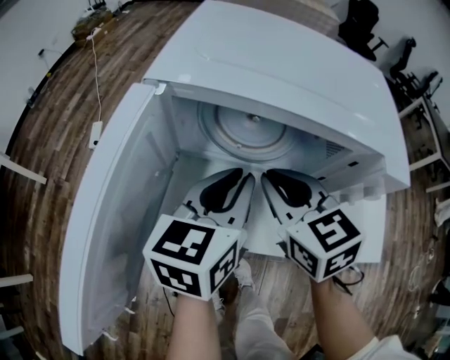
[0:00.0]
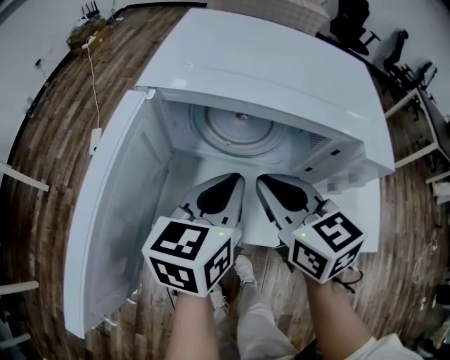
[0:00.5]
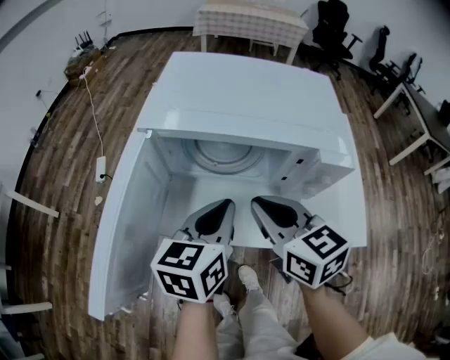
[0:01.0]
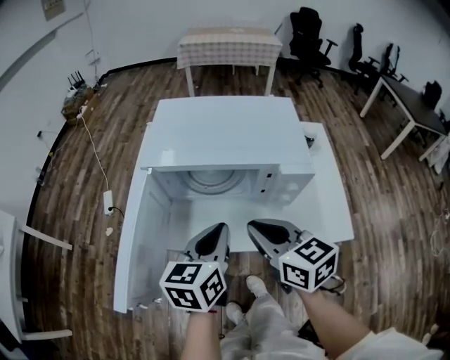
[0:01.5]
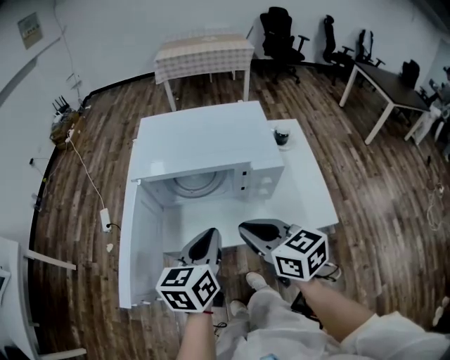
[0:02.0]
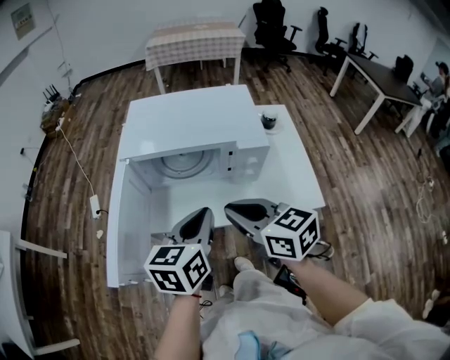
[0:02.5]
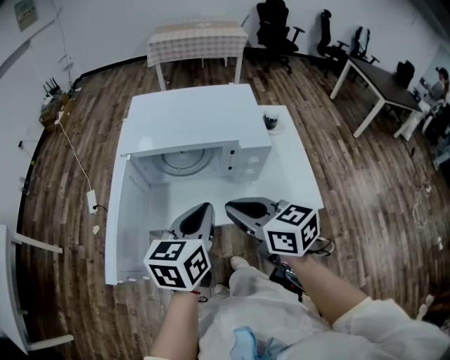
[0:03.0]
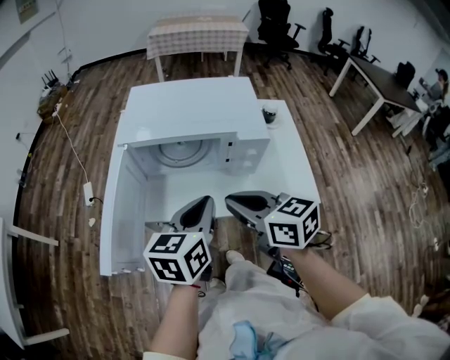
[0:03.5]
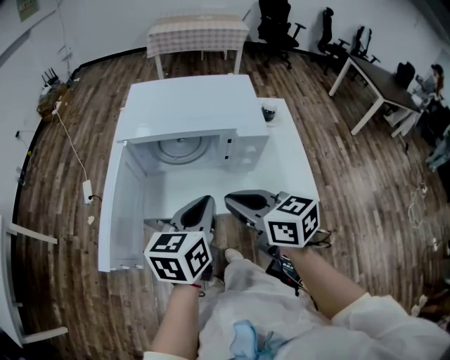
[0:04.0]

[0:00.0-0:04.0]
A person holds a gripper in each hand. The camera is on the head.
0:00.0 to 0:02.0: Both grippers move backward and upward, roughly 20 cm. The right gripper changes its angle by approximately 20 degrees.
0:02.0 to 0:04.0: The grippers move only a little.

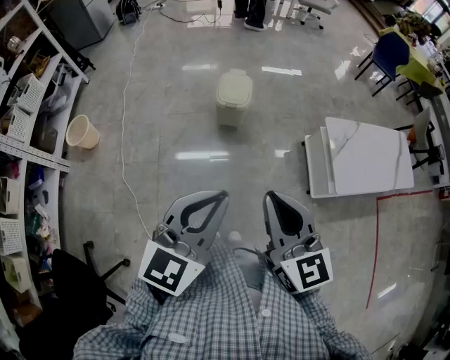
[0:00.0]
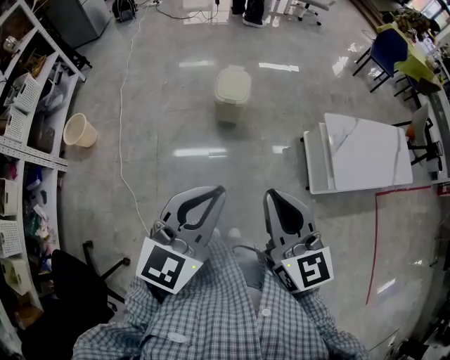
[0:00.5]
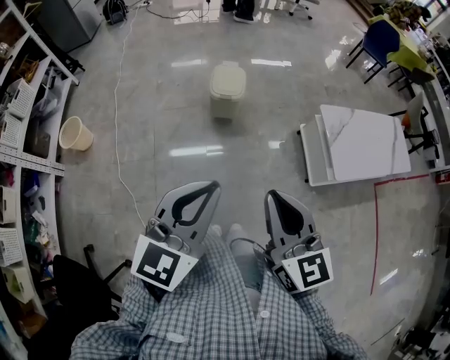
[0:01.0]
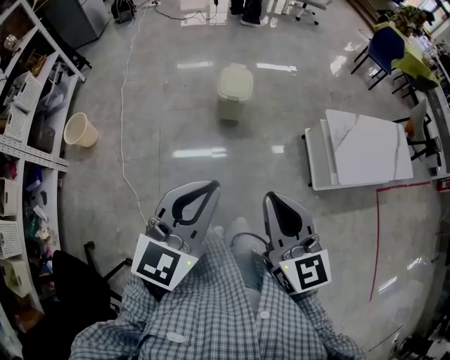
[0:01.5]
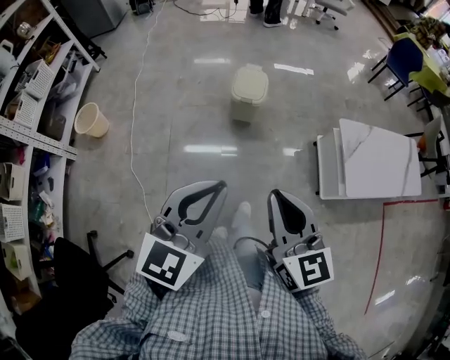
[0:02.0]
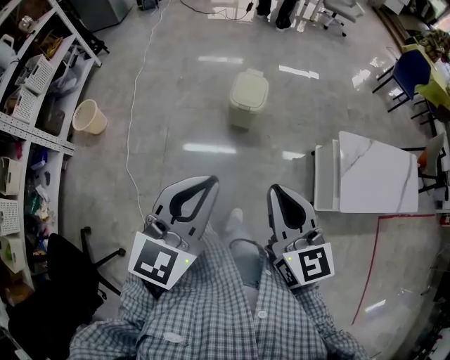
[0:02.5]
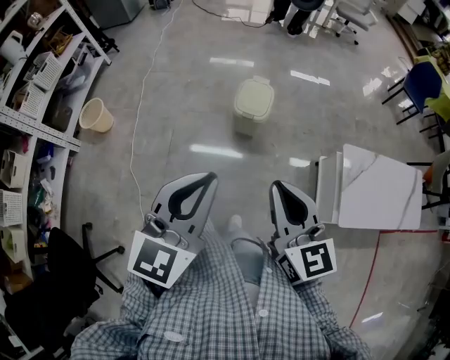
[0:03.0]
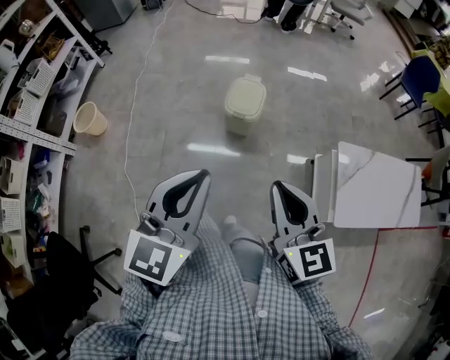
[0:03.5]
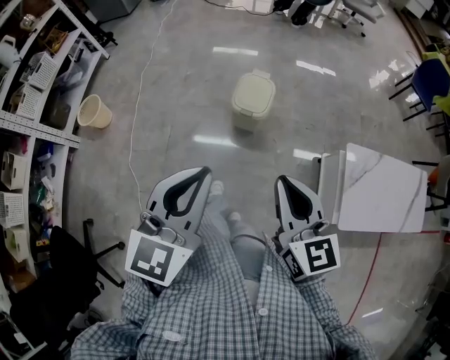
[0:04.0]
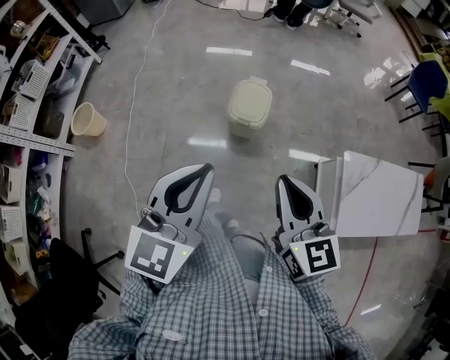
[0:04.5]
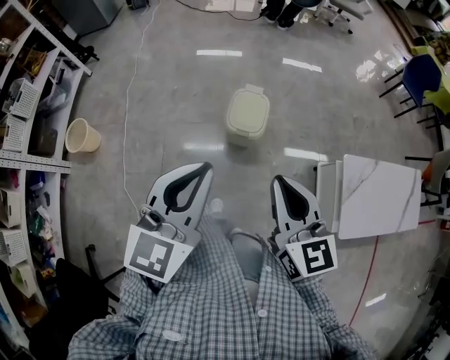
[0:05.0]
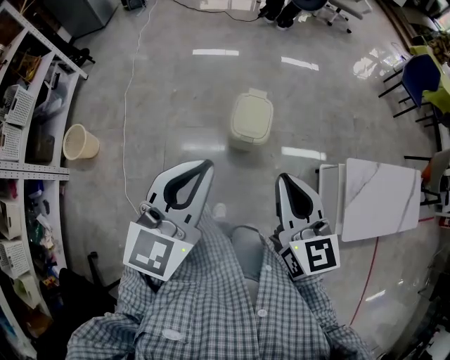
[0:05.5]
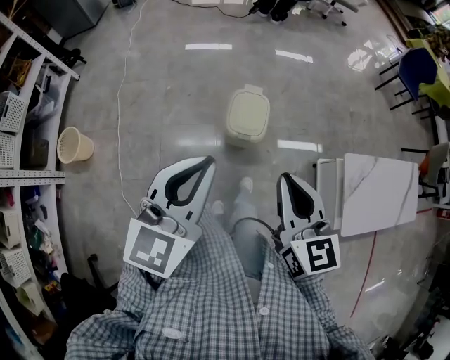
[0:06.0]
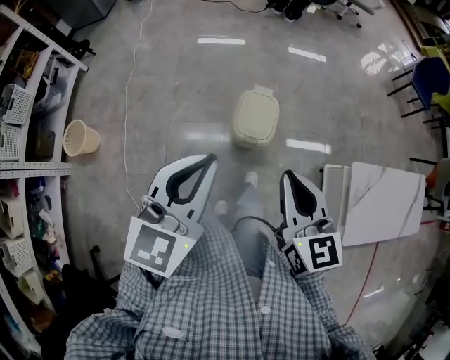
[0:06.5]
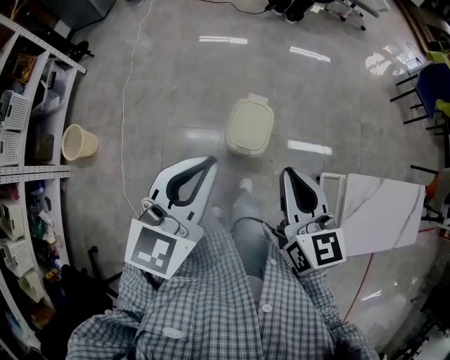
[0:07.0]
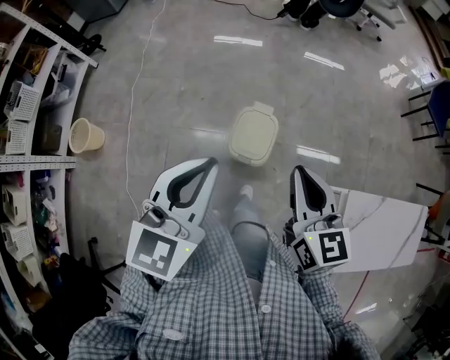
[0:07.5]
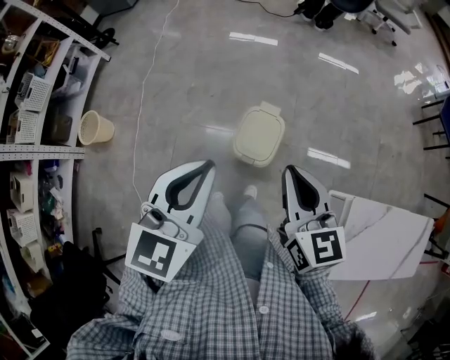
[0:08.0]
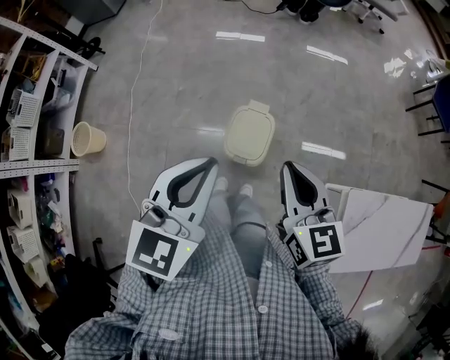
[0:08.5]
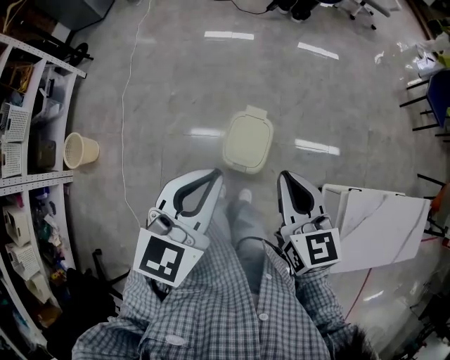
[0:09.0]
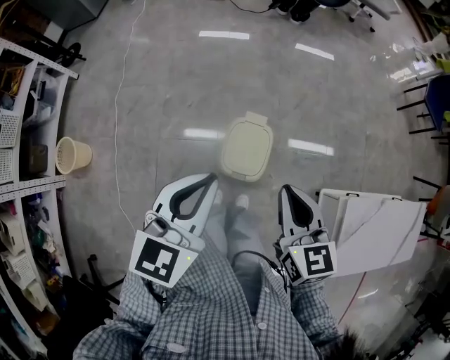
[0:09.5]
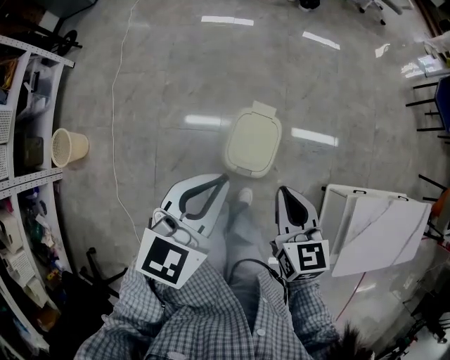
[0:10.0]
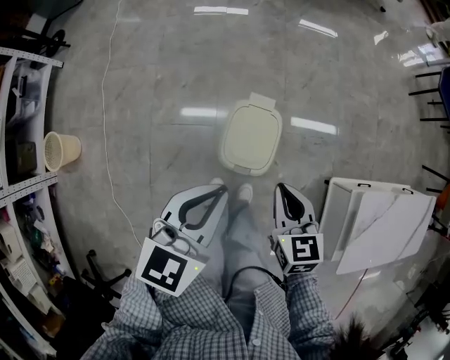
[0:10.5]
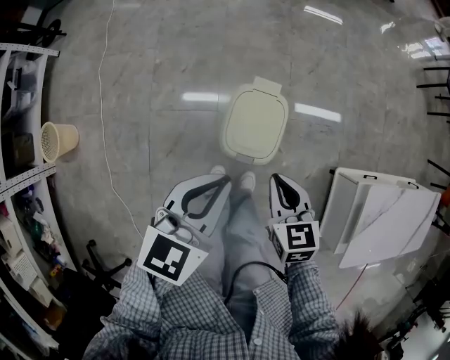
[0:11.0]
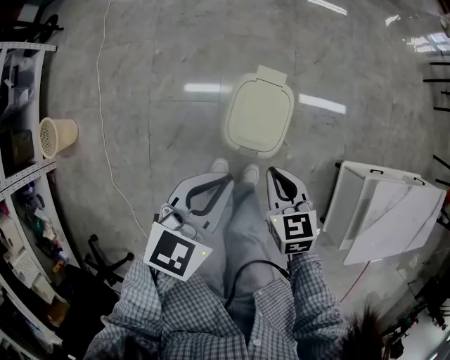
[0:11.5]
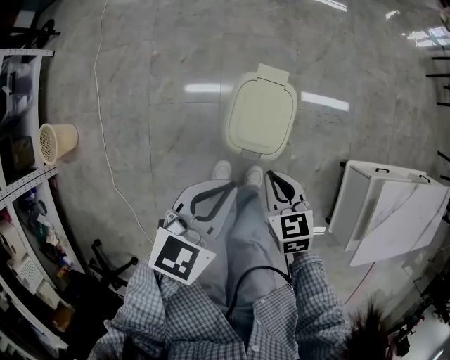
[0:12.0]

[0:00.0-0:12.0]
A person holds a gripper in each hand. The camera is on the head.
0:00.0 to 0:02.0: The grippers make only small movements.
0:02.0 to 0:04.0: The left gripper heads forward, covering approximately 15 cm. The right gripper shifts roughly 20 cm forward and to the right.
0:04.0 to 0:06.0: Both grippers move forward and to the left, approximately 20 cm.
0:06.0 to 0:08.0: The grippers both shift forward and to the right by roughly 20 cm.
0:08.0 to 0:10.0: The left gripper is displaced downward and forward by about 15 cm, while the right gripper heads downward, covering approximately 15 cm.
0:10.0 to 0:12.0: Both grippers travel together downward, about 20 cm.

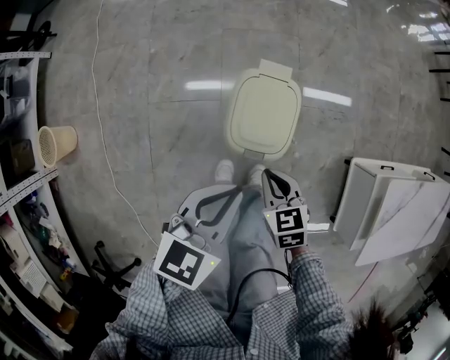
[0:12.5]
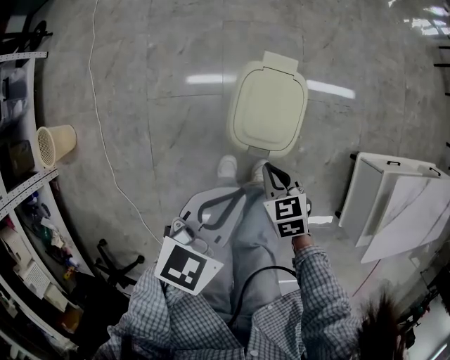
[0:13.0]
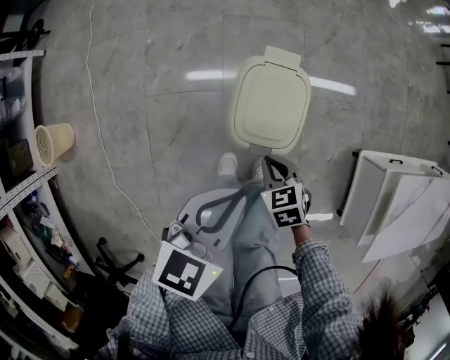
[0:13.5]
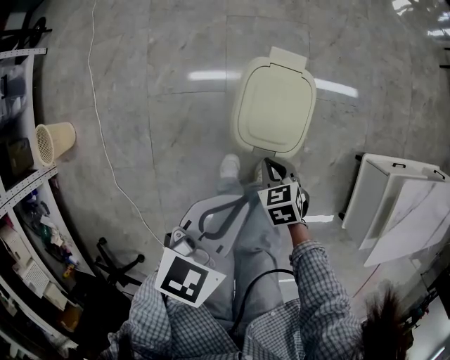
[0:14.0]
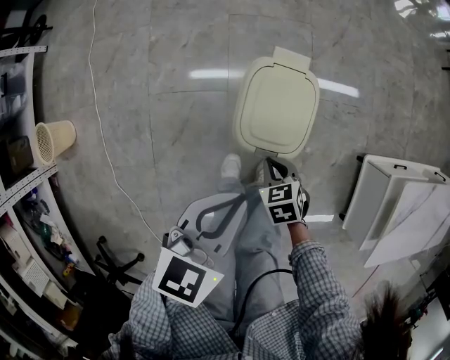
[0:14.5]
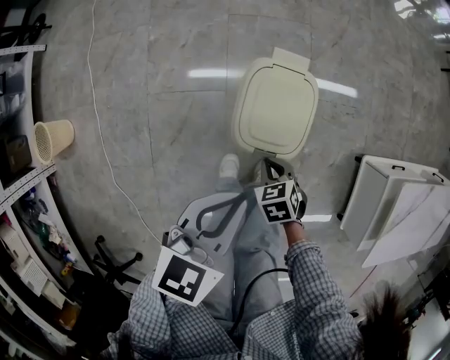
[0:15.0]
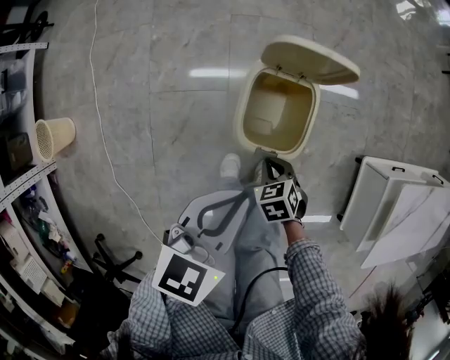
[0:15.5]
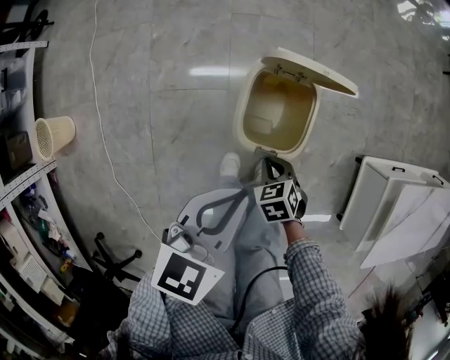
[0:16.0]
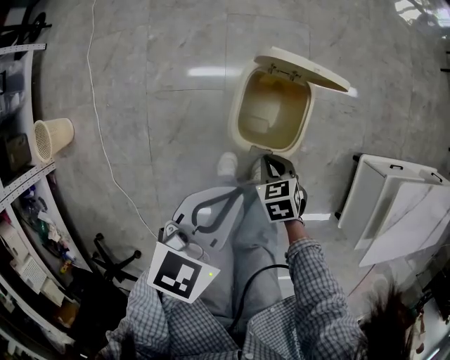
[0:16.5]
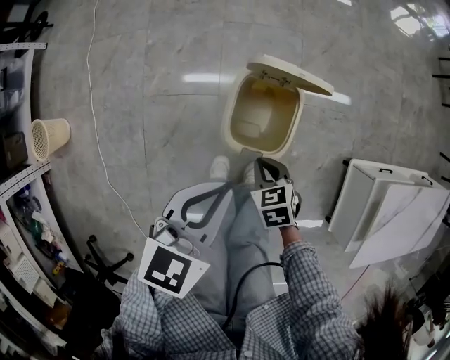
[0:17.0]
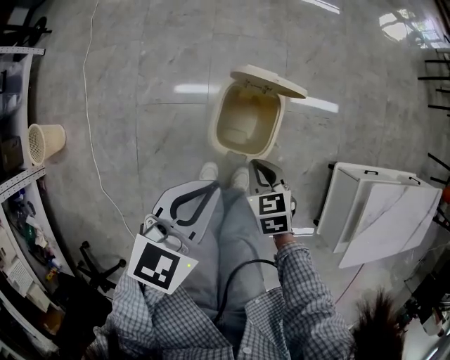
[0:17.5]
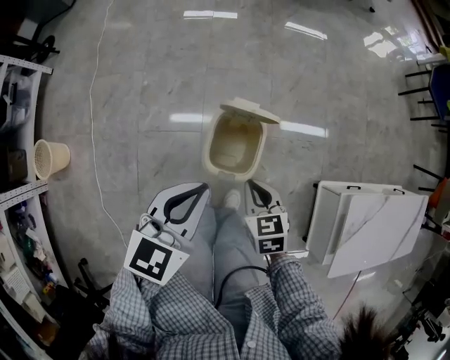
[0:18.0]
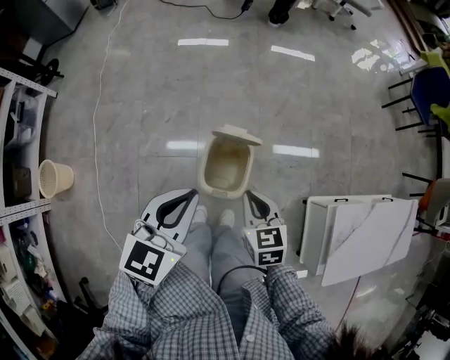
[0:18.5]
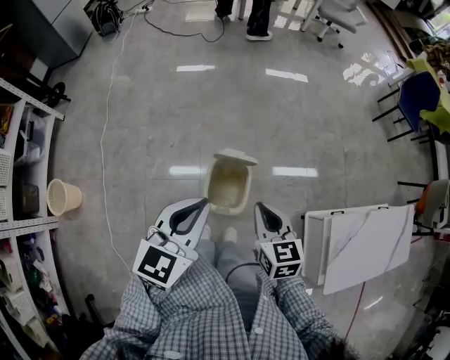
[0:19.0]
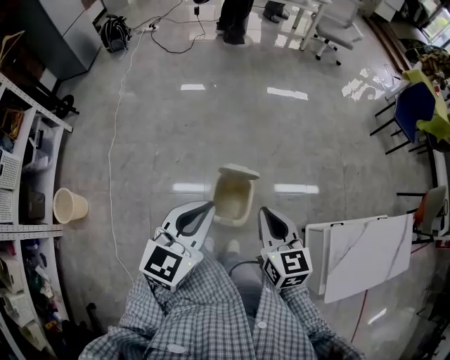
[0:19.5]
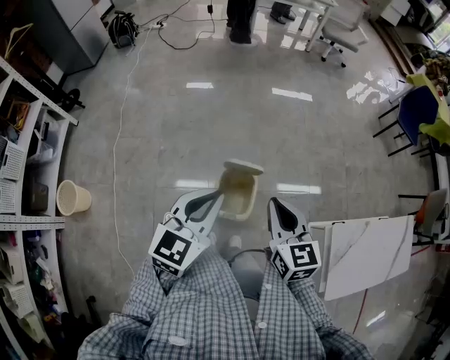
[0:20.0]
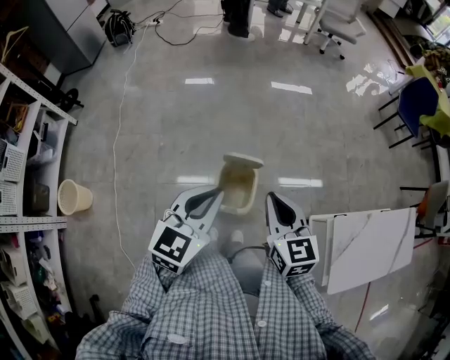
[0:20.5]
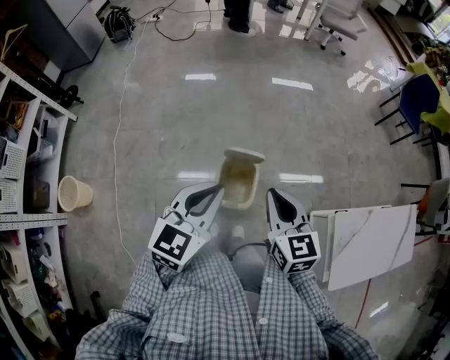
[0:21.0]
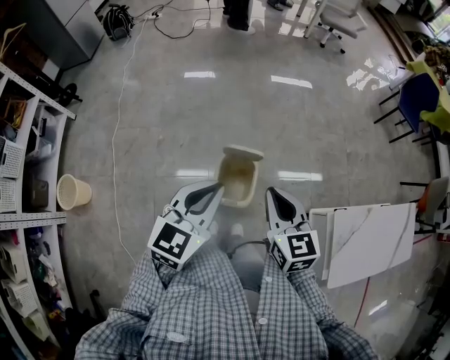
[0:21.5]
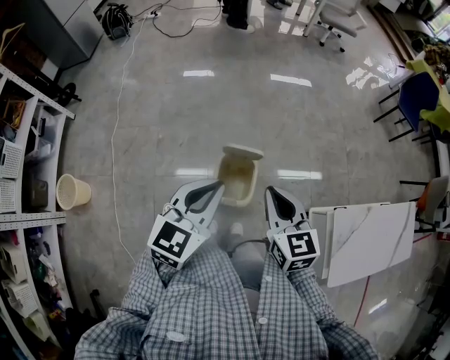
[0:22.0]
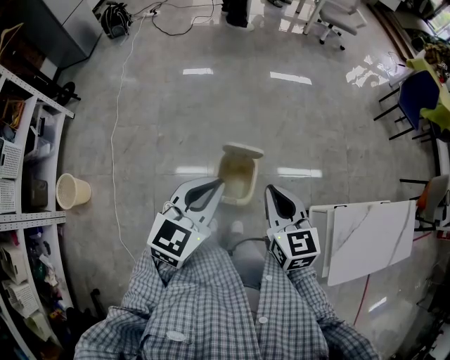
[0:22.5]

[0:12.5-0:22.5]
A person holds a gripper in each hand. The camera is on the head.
0:12.5 to 0:14.5: The right gripper shifts about 10 cm downward.
0:14.5 to 0:16.5: There are only small adjustments of the grippers.
0:16.5 to 0:18.5: The right gripper is displaced upward by roughly 30 cm, and rotates roughly 30 degrees, while the left gripper goes roughly 20 cm upward.
0:18.5 to 0:20.5: The left gripper moves upward, some 10 cm, while the right gripper moves upward, about 20 cm.
0:20.5 to 0:22.5: The two grippers keep their place.

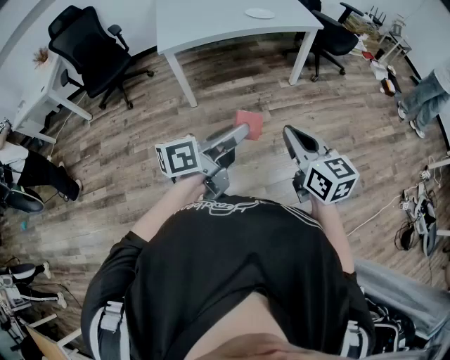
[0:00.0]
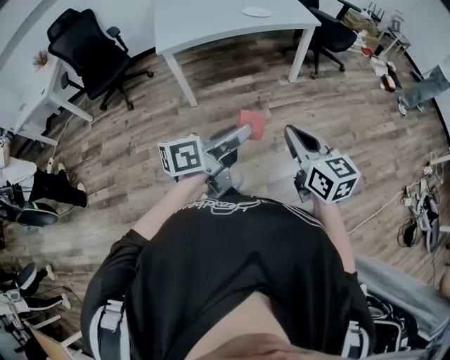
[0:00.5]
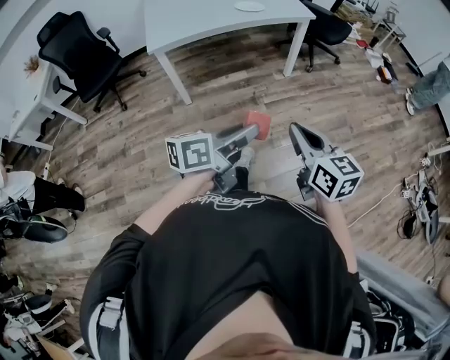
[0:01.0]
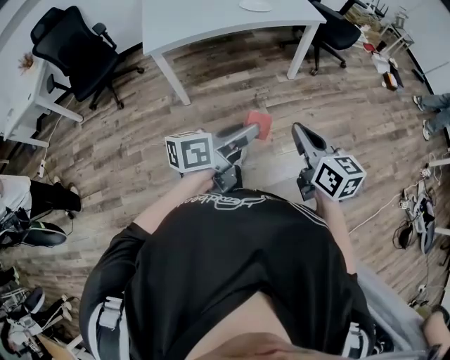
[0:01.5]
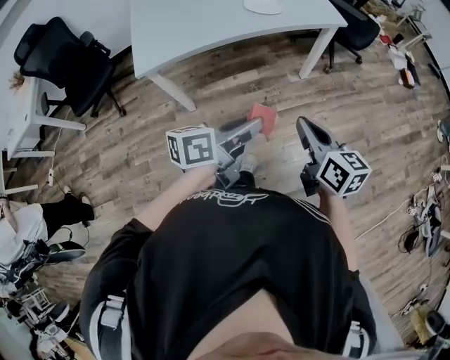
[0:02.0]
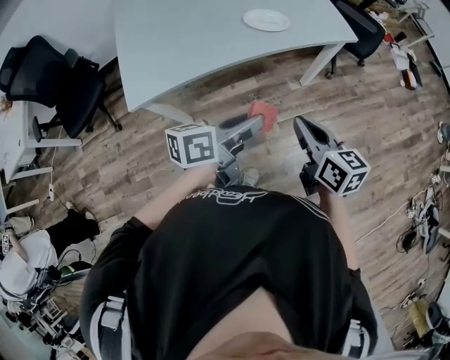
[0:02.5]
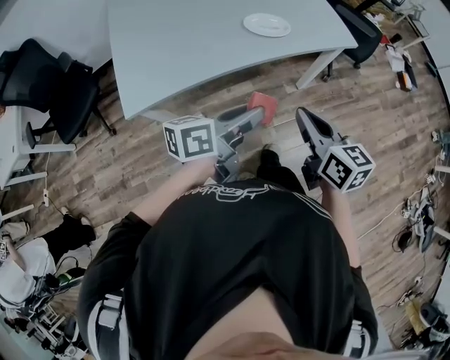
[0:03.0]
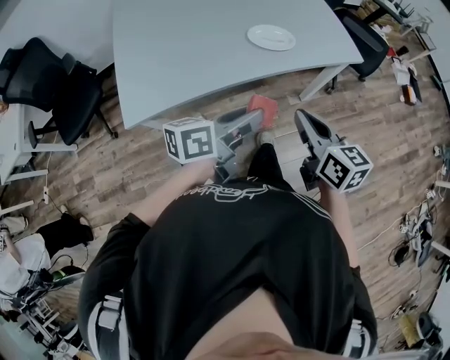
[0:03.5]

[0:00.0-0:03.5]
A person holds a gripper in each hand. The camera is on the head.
0:00.0 to 0:02.0: The two grippers go about 30 cm forward.
0:02.0 to 0:03.5: Both grippers move forward, some 25 cm.
